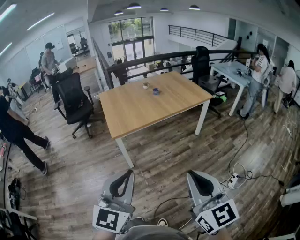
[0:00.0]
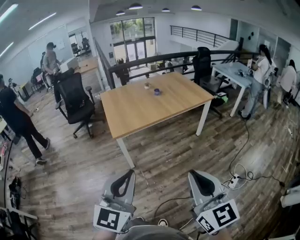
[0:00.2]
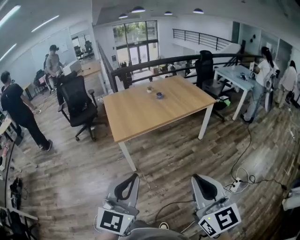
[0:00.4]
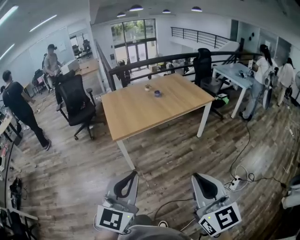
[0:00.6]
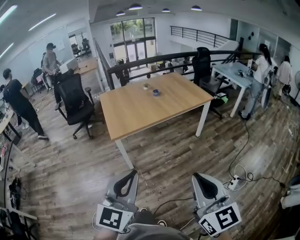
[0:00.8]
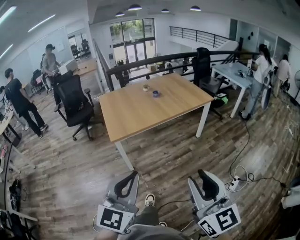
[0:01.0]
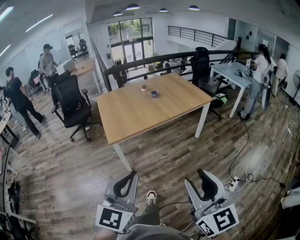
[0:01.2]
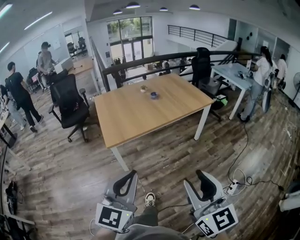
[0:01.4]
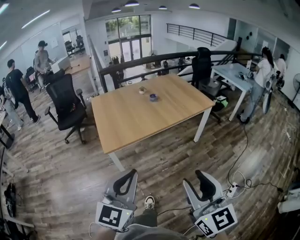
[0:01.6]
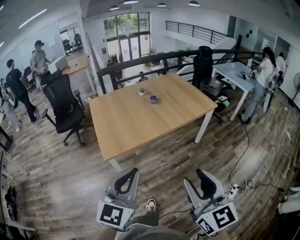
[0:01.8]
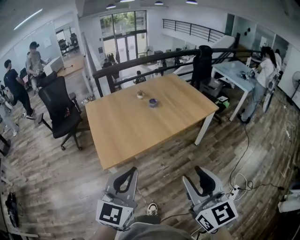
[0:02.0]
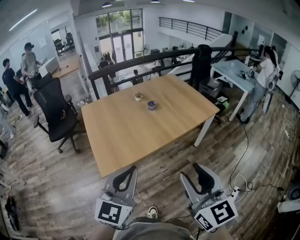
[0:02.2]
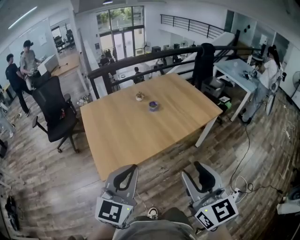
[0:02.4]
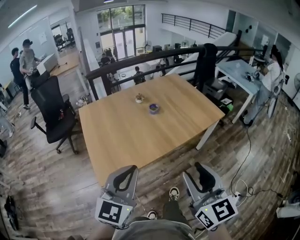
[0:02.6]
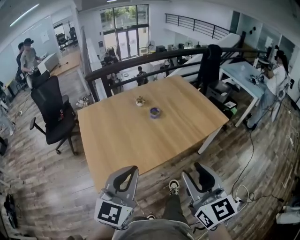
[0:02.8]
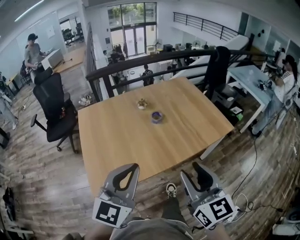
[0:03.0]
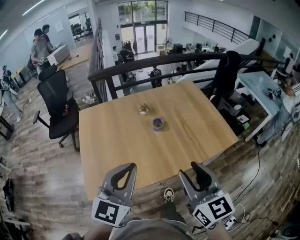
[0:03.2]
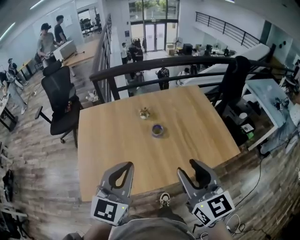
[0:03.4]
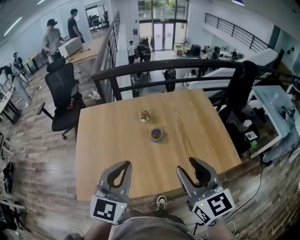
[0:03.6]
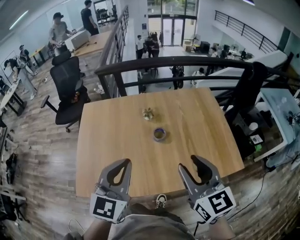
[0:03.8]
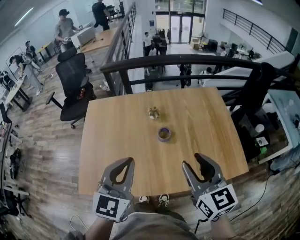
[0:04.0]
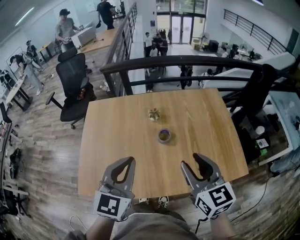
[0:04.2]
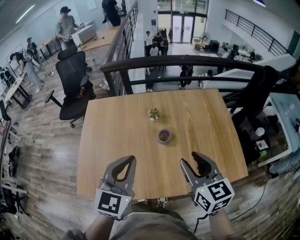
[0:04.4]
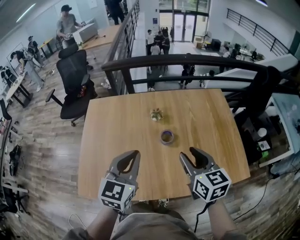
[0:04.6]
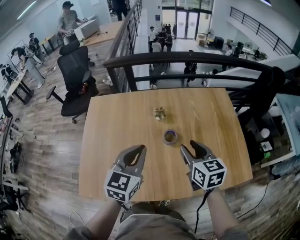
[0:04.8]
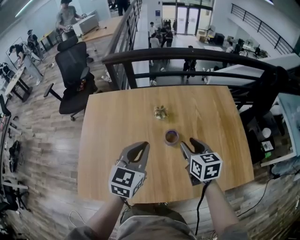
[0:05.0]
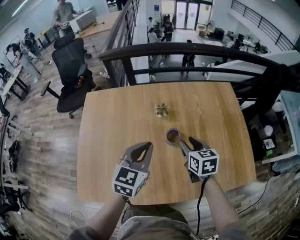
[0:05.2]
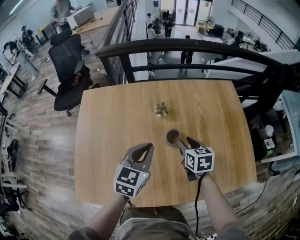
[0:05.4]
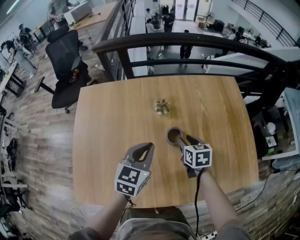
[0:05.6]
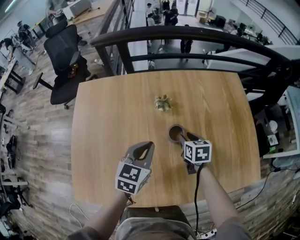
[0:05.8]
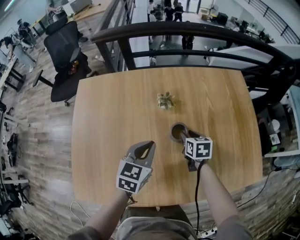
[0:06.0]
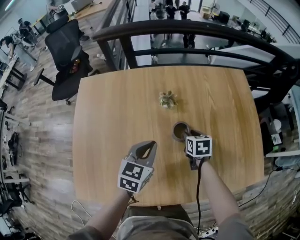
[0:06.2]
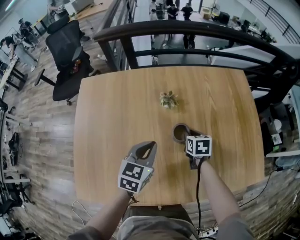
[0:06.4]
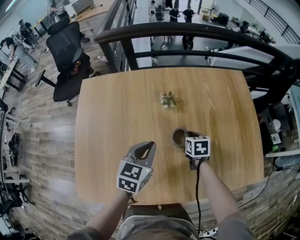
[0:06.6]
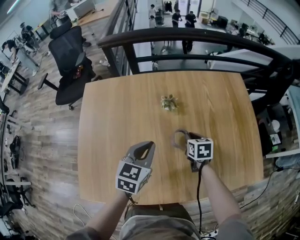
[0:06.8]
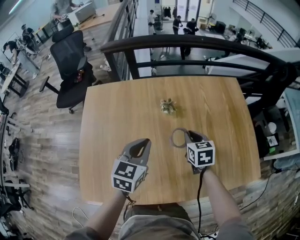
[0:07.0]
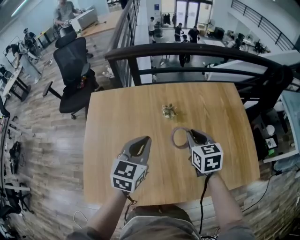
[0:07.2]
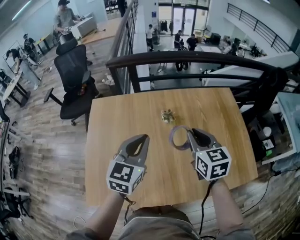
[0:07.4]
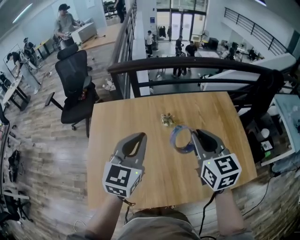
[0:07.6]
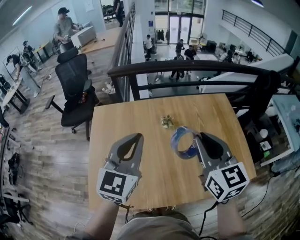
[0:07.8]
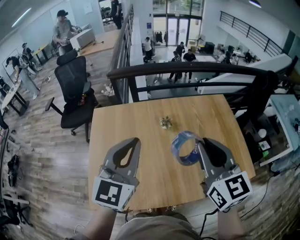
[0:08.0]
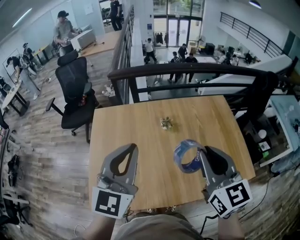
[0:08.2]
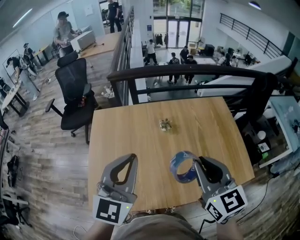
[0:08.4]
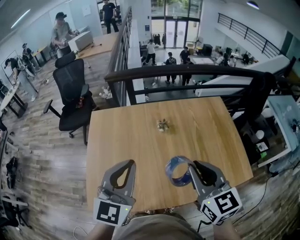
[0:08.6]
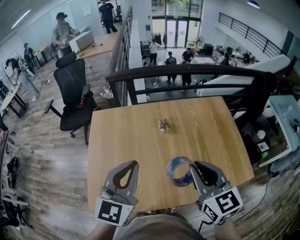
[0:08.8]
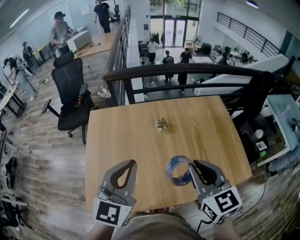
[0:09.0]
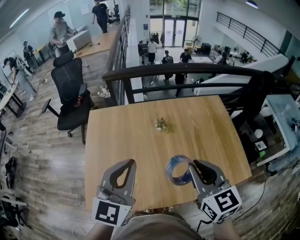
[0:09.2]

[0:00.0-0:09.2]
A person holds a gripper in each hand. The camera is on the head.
0:00.0 to 0:01.6: Both grippers travel together forward, about 20 cm. The right gripper opens its fingers.
0:01.6 to 0:03.0: The two grippers travel together, forward, approximately 50 cm.
0:03.0 to 0:04.6: The grippers both shift forward by about 30 cm. The left gripper changes its angle by approximately 30 degrees. Meanwhile the right gripper swivels some 30 degrees.
0:04.6 to 0:06.2: Both grippers move downward and forward, approximately 30 cm. The right gripper tilts its fingers some 30 degrees downward, while the left gripper turns by approximately 20 degrees.
0:06.2 to 0:07.6: Both grippers travel together upward, some 30 cm. The right gripper tips its fingers upward by approximately 40 degrees, and closes its fingers; the left gripper turns by some 30 degrees.
0:07.6 to 0:09.2: The two grippers go roughly 10 cm backward.

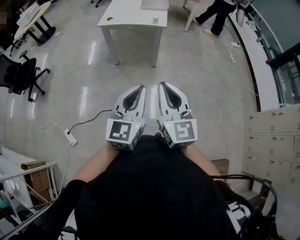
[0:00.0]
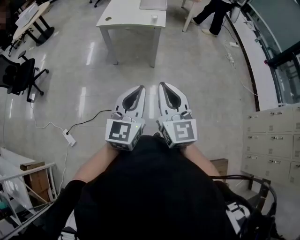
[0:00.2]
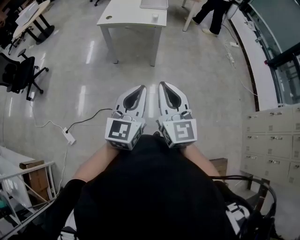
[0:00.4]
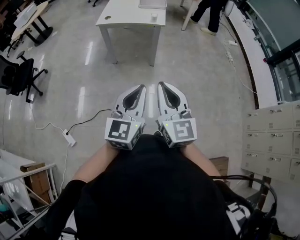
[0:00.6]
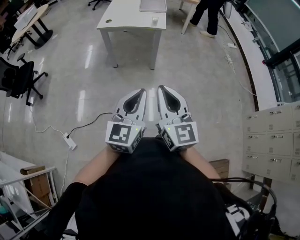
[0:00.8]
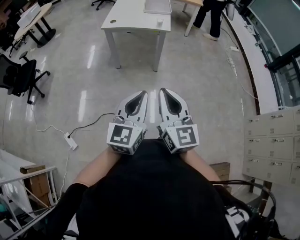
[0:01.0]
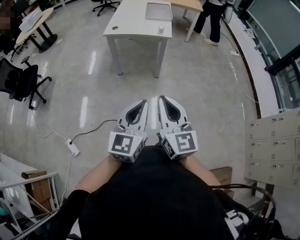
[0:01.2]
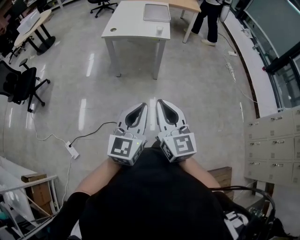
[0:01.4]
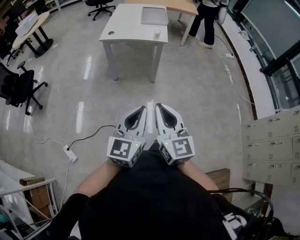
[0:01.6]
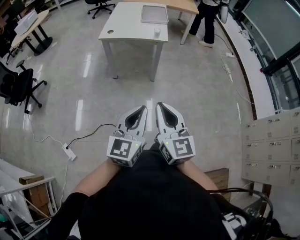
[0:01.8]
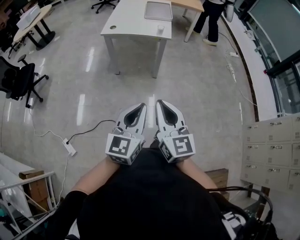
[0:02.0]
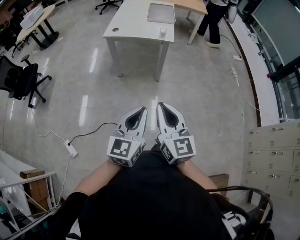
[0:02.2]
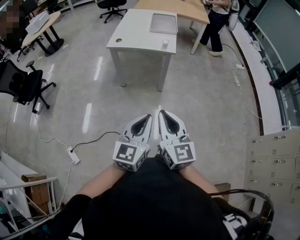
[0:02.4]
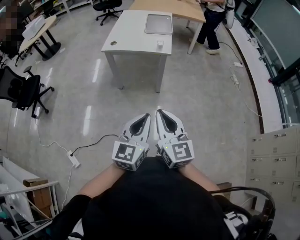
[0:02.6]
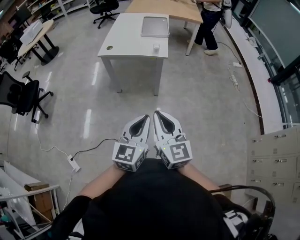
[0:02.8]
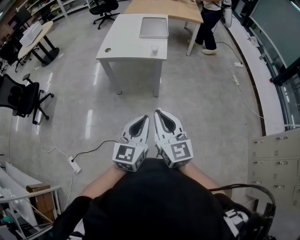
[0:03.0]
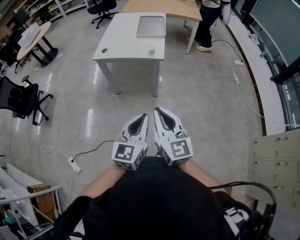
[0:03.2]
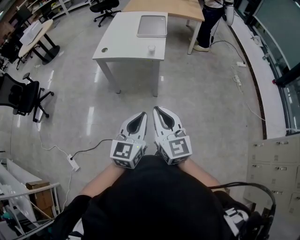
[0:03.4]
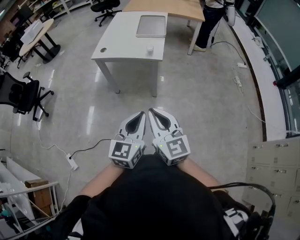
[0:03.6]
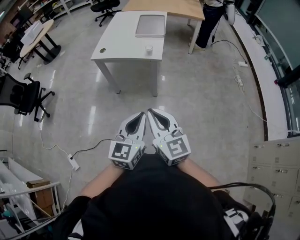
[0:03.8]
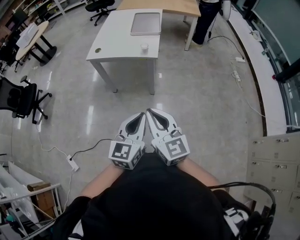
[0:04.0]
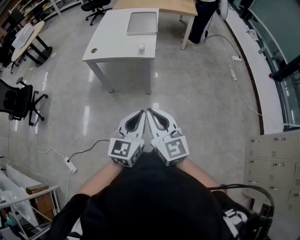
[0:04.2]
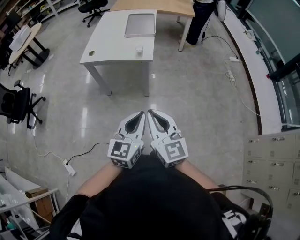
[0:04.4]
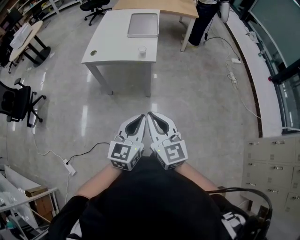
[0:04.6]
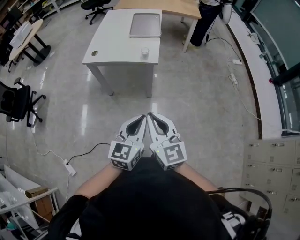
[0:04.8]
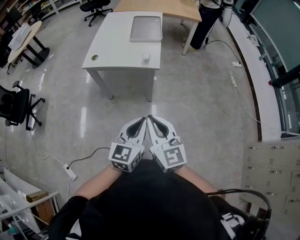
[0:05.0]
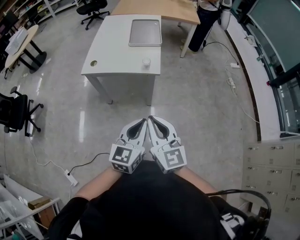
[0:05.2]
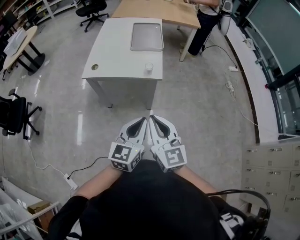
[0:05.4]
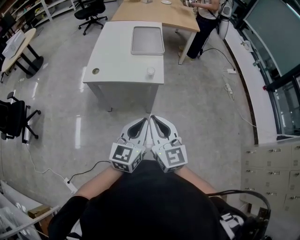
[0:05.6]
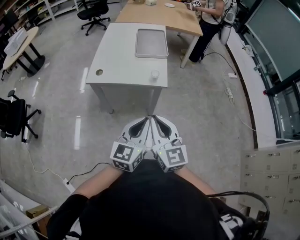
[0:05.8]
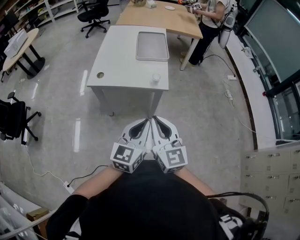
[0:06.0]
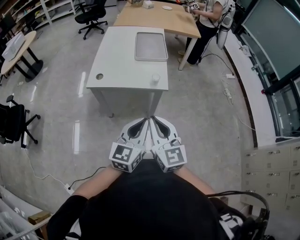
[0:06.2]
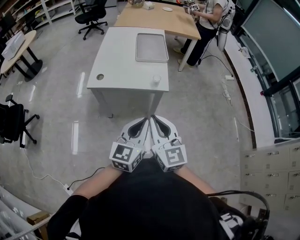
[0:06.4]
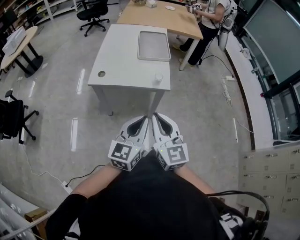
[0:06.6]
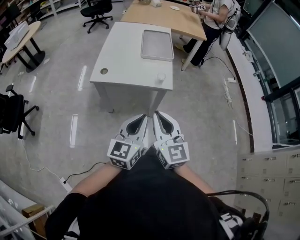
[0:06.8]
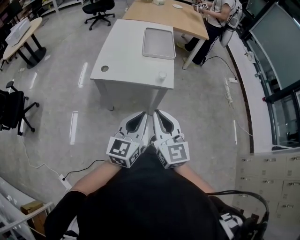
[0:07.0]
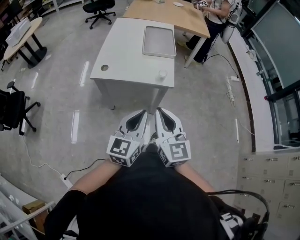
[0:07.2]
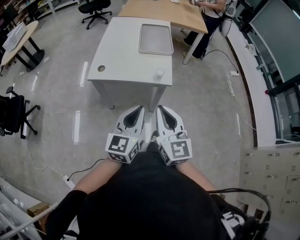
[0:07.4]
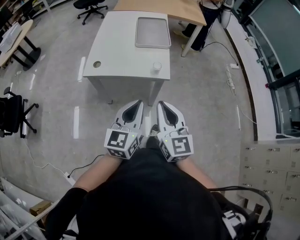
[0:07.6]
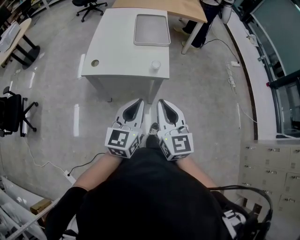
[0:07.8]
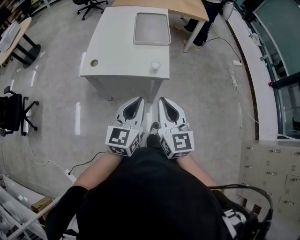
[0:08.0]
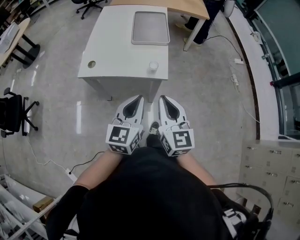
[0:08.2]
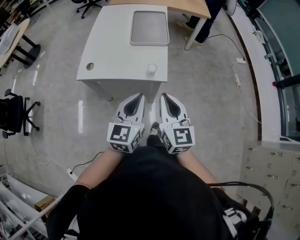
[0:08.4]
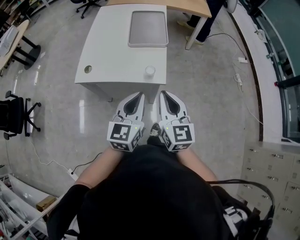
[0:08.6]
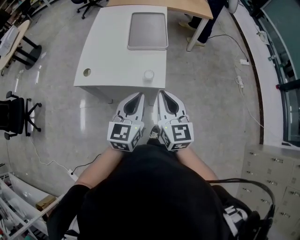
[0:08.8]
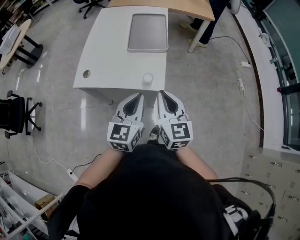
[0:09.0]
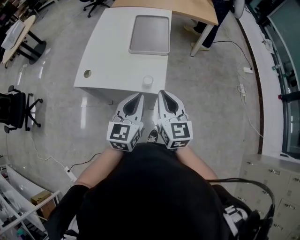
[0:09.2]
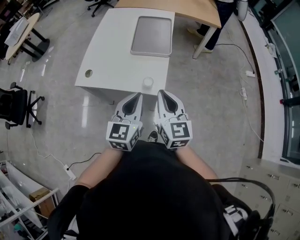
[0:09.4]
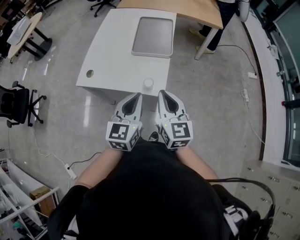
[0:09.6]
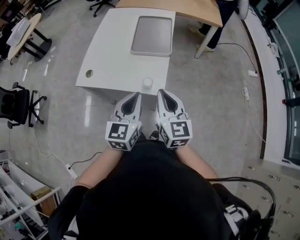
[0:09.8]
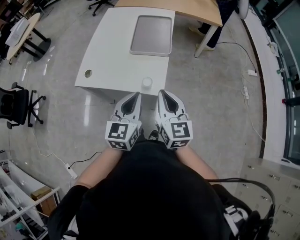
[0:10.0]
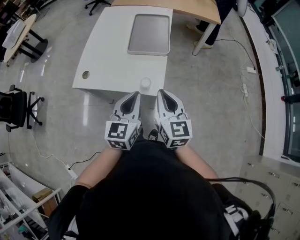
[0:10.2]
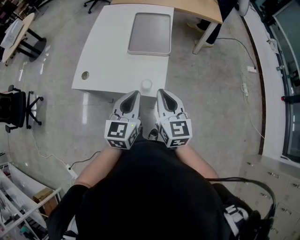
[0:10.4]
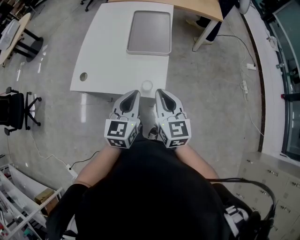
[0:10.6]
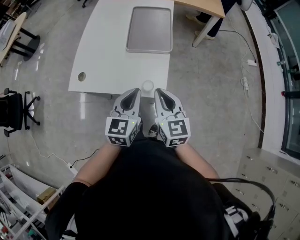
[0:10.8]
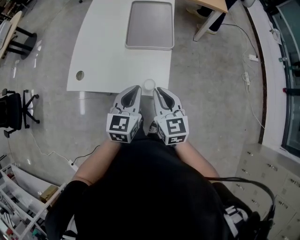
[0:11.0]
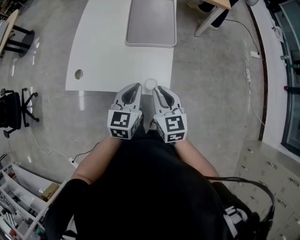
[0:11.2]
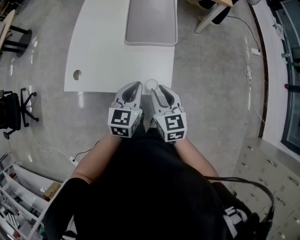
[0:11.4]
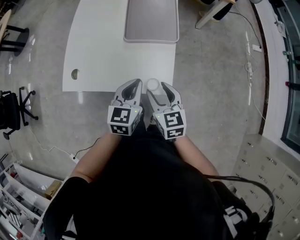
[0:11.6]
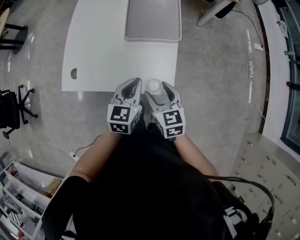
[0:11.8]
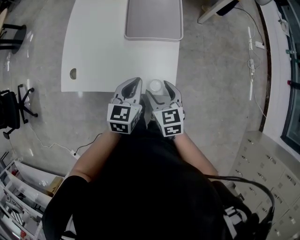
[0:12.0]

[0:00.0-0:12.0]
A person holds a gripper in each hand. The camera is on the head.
0:00.0 to 0:01.6: Both grippers travel together to the left, some 5 cm.
0:01.6 to 0:03.0: The grippers both shift forward and to the right by some 20 cm.
0:03.0 to 0:04.4: The two grippers go about 10 cm forward and to the right.
0:04.4 to 0:06.0: Both grippers travel together forward and to the left, roughly 25 cm.
0:06.0 to 0:07.6: The two grippers go about 5 cm forward.
0:07.6 to 0:09.0: Both grippers move forward and to the right, roughly 20 cm.
0:09.0 to 0:10.4: Both grippers travel together forward, approximately 5 cm.
0:10.4 to 0:12.0: Both grippers travel together downward and forward, some 20 cm. The right gripper changes its angle by approximately 30 degrees, and opens up.

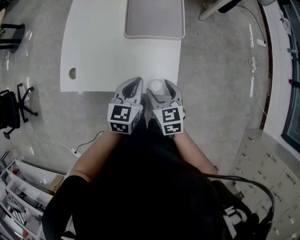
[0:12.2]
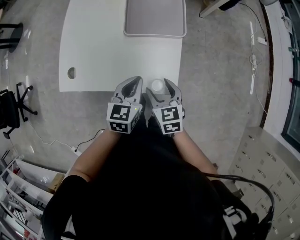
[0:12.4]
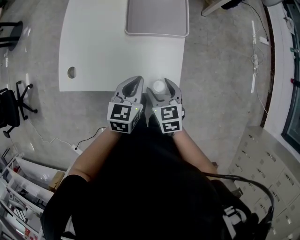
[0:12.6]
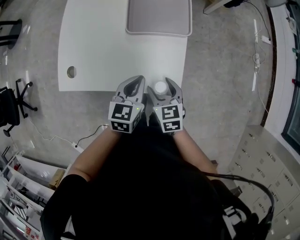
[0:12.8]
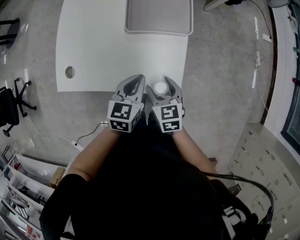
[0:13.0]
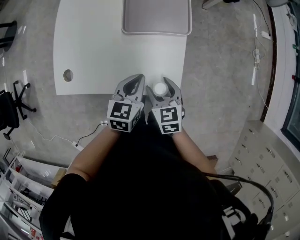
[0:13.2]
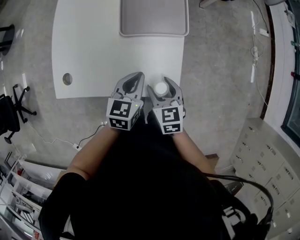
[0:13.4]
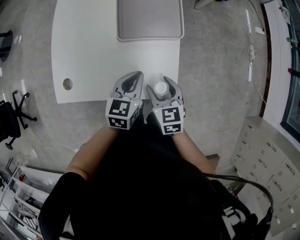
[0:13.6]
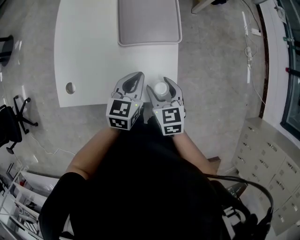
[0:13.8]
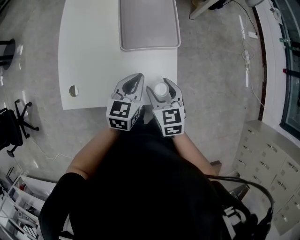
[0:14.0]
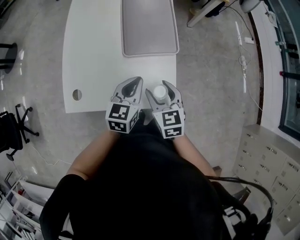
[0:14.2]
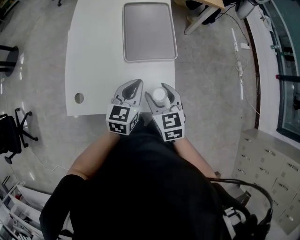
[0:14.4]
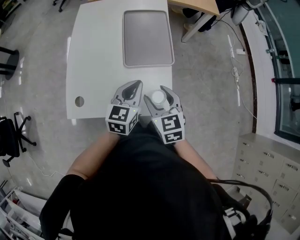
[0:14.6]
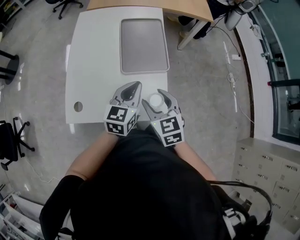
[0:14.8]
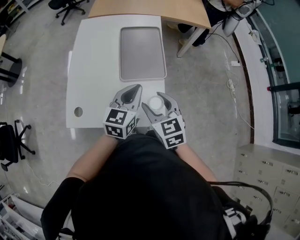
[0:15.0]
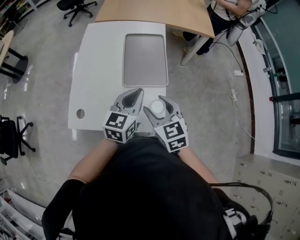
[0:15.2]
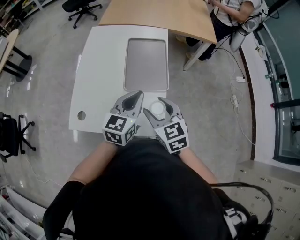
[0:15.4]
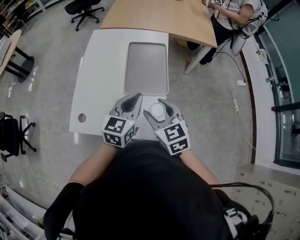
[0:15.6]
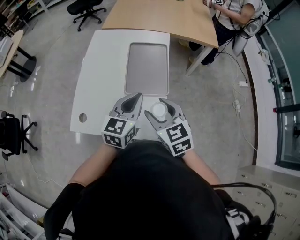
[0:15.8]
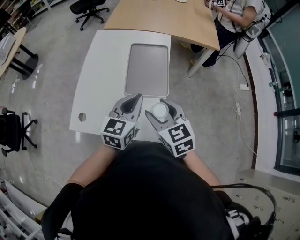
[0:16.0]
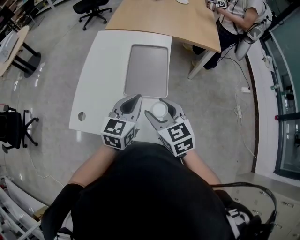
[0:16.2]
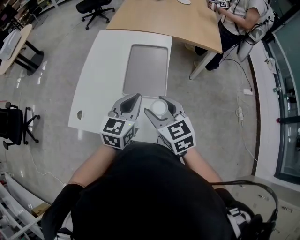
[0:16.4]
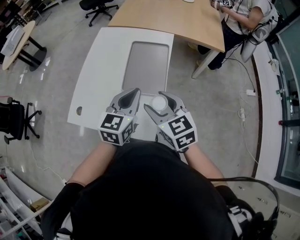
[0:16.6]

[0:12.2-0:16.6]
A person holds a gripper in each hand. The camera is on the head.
0:12.2 to 0:13.6: The grippers both shift forward by some 5 cm.
0:13.6 to 0:15.2: Both grippers travel together upward, about 20 cm.
0:15.2 to 0:16.6: The left gripper ends up some 5 cm from where it was, while the right gripper travels to the right and upward by about 10 cm.
